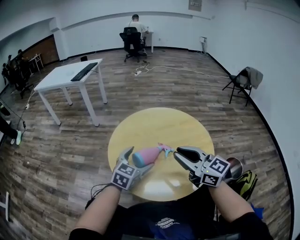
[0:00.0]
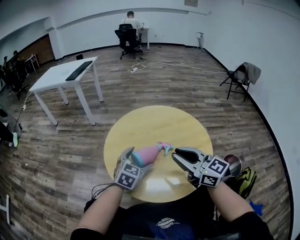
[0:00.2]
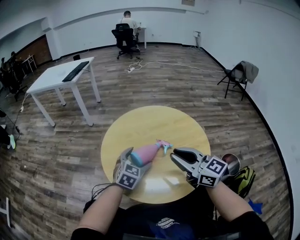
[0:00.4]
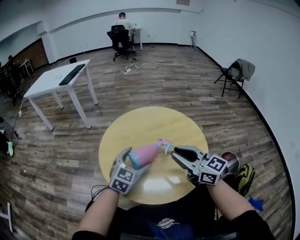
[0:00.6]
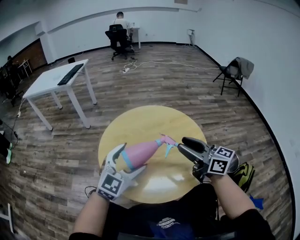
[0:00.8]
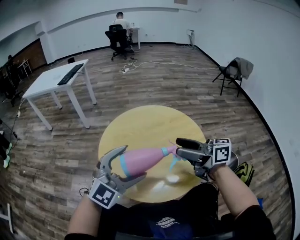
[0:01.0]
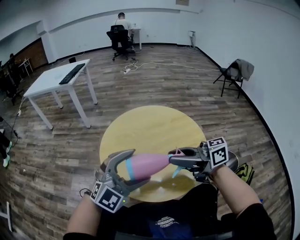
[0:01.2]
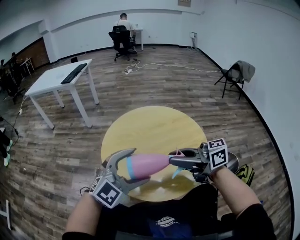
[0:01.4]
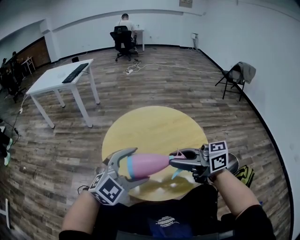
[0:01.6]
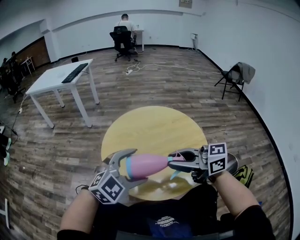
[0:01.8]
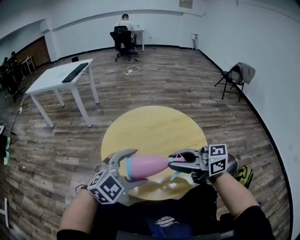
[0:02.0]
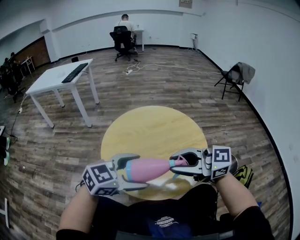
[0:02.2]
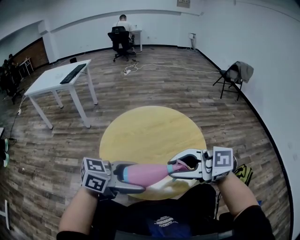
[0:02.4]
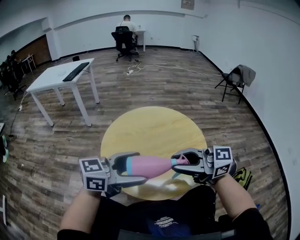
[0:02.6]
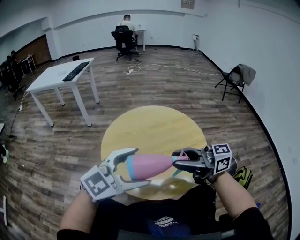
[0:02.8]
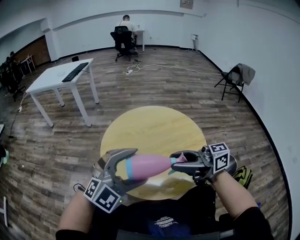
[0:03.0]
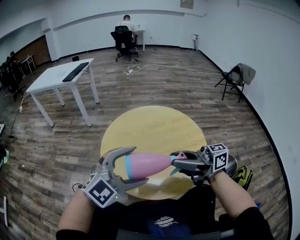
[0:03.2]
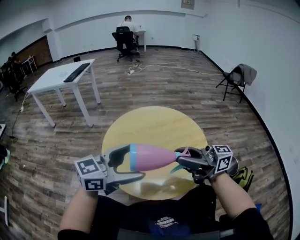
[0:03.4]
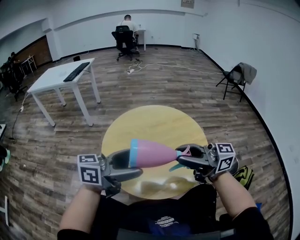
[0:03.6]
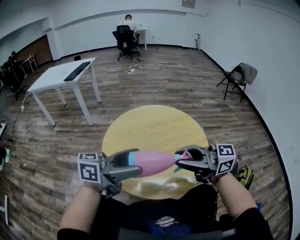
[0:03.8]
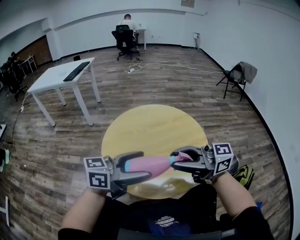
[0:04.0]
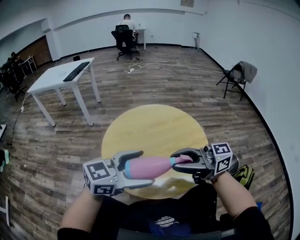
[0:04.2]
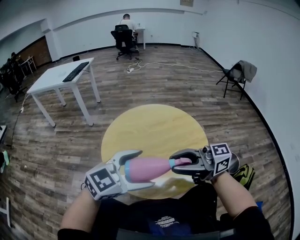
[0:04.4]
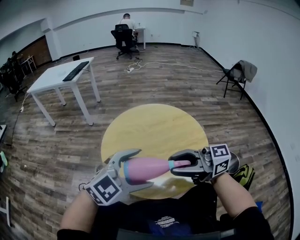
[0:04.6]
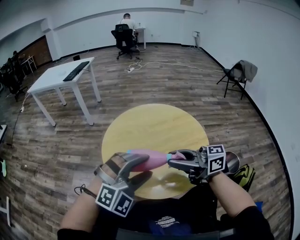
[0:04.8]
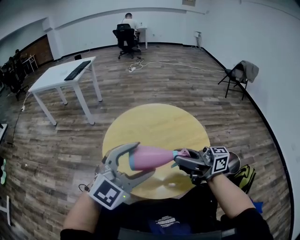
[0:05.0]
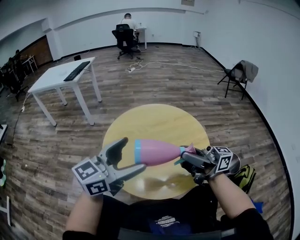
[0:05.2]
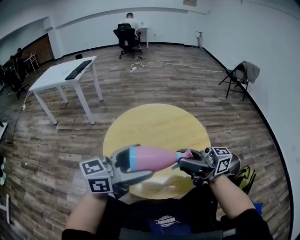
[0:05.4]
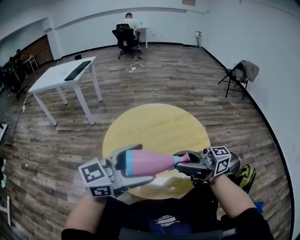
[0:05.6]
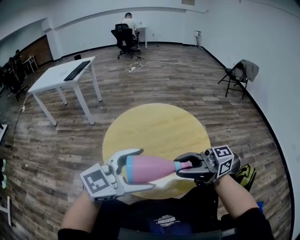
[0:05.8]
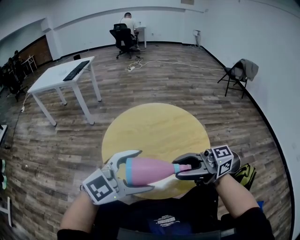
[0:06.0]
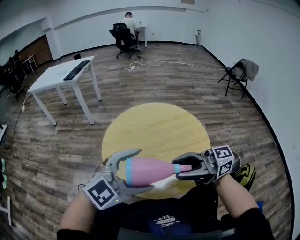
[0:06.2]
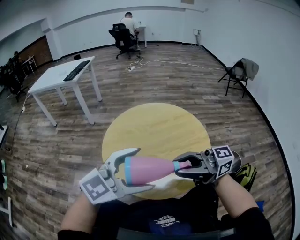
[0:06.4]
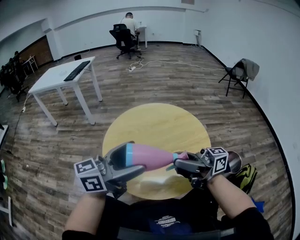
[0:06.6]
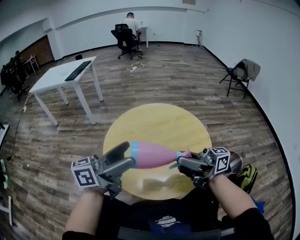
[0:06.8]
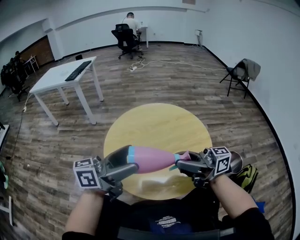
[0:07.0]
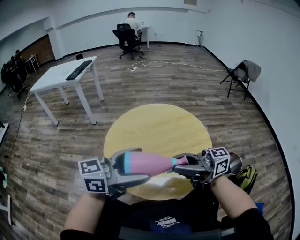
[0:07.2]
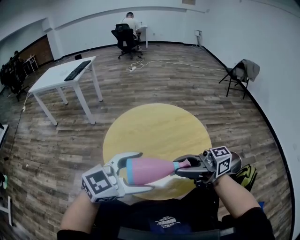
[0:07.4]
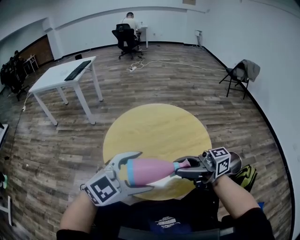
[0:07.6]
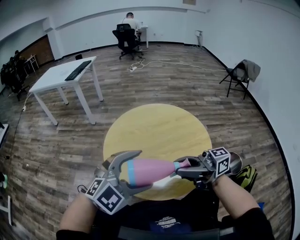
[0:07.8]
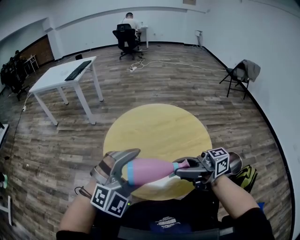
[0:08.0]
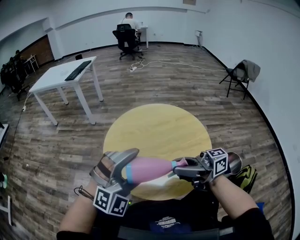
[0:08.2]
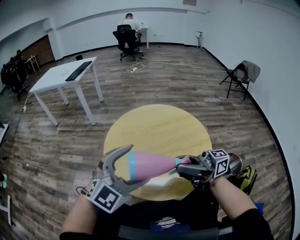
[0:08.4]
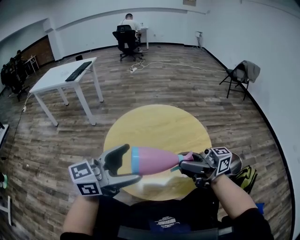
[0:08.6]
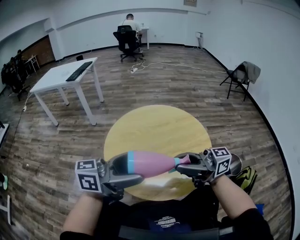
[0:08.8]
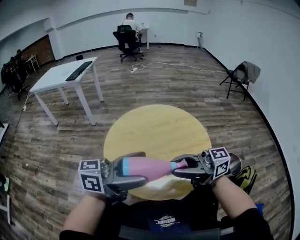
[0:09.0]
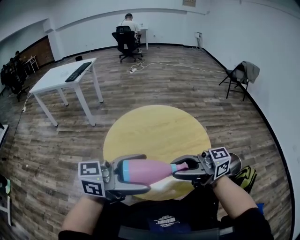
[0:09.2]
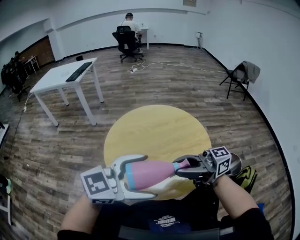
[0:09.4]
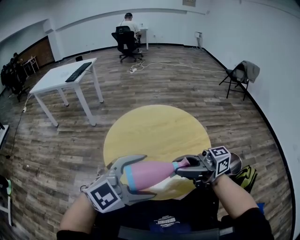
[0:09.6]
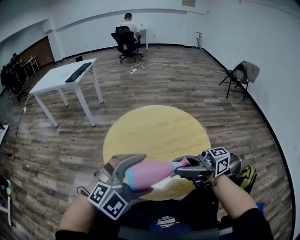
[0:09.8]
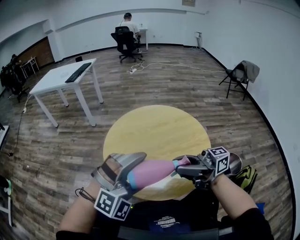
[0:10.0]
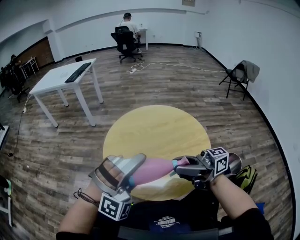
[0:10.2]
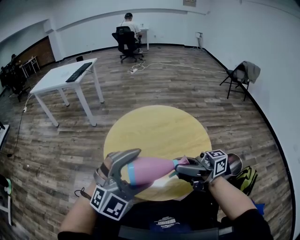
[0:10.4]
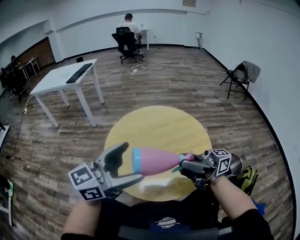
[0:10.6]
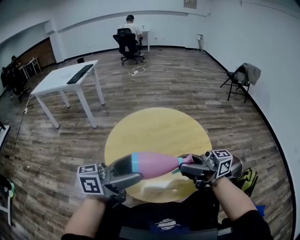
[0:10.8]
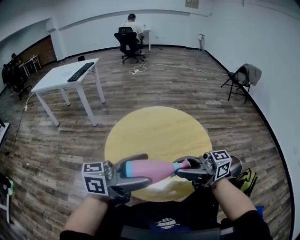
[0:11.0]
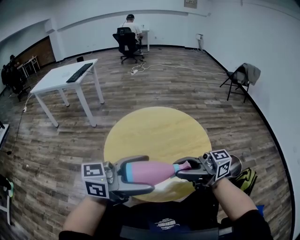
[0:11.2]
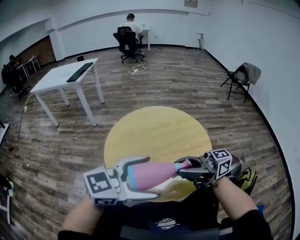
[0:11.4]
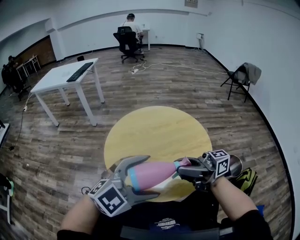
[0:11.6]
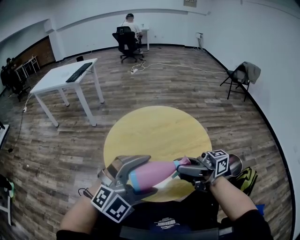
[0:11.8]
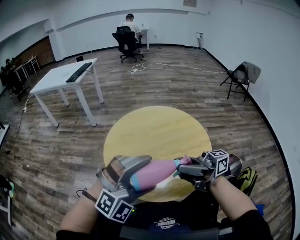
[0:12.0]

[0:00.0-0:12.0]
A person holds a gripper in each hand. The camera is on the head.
0:00.0 to 0:01.6: The left gripper is displaced upward and backward by approximately 15 cm, and turns by approximately 40 degrees. The right gripper reaches roughly 10 cm to the right, then returns, swivels approximately 30 degrees, and opens, then closes once more.
0:03.0 to 0:04.4: The left gripper turns by approximately 40 degrees.
0:04.4 to 0:06.0: The left gripper closes and opens again.
0:07.6 to 0:09.0: The left gripper is displaced upward by roughly 5 cm, and rotates around the line of its fingers by roughly 50 degrees, counterclockwise from behind.
0:09.0 to 0:10.4: The left gripper rotates around the line of its fingers by roughly 80 degrees, clockwise from behind.

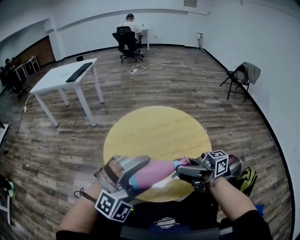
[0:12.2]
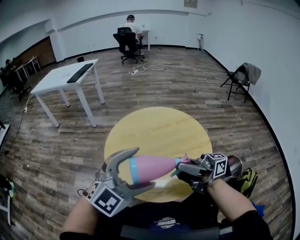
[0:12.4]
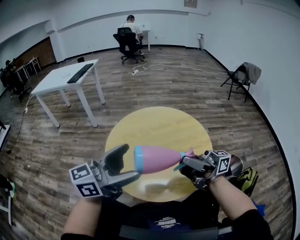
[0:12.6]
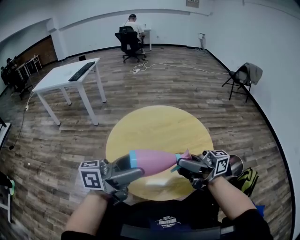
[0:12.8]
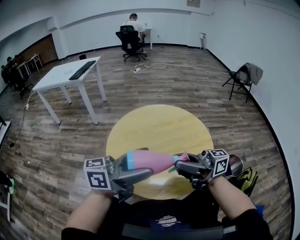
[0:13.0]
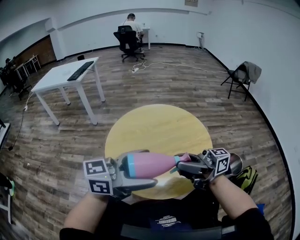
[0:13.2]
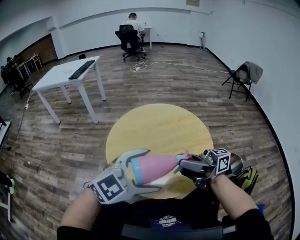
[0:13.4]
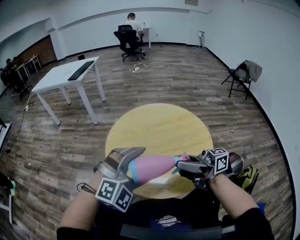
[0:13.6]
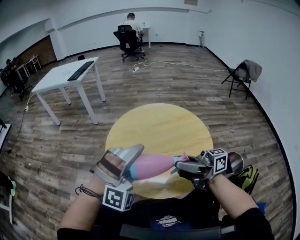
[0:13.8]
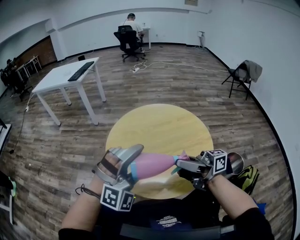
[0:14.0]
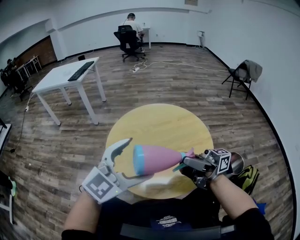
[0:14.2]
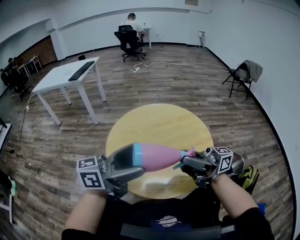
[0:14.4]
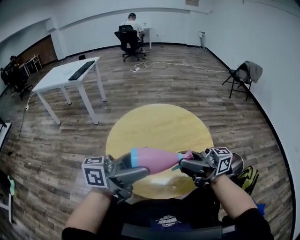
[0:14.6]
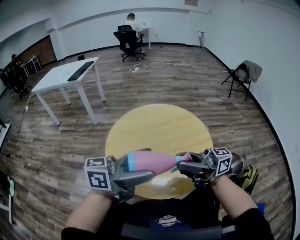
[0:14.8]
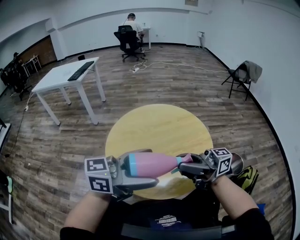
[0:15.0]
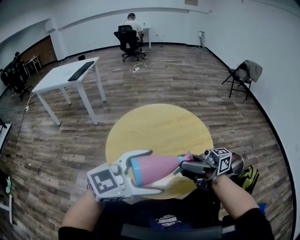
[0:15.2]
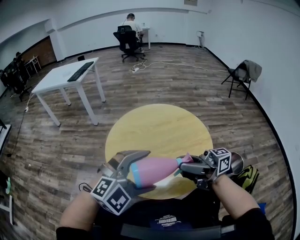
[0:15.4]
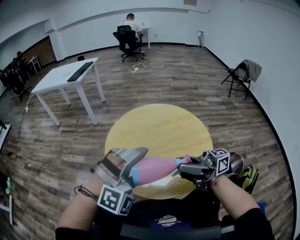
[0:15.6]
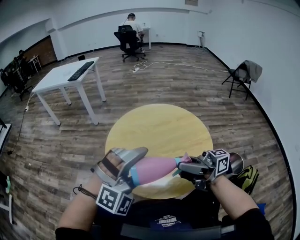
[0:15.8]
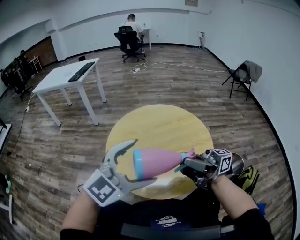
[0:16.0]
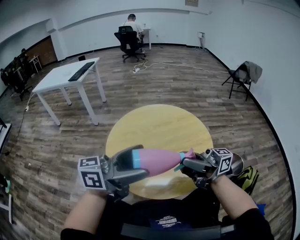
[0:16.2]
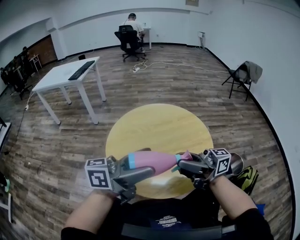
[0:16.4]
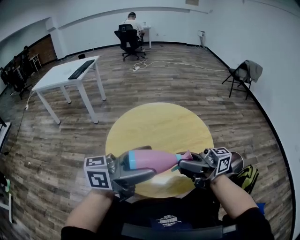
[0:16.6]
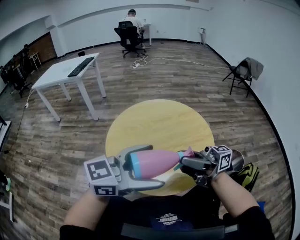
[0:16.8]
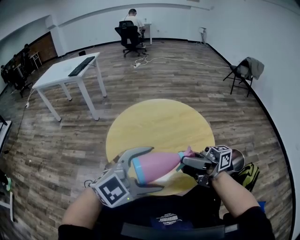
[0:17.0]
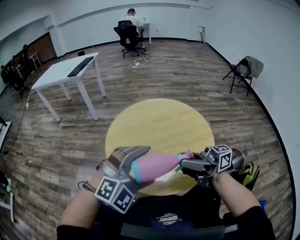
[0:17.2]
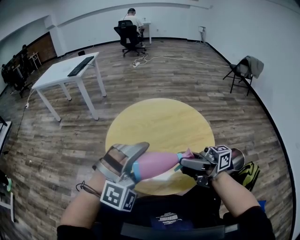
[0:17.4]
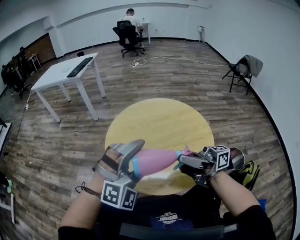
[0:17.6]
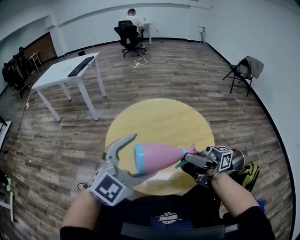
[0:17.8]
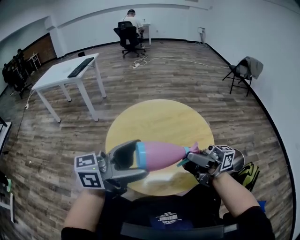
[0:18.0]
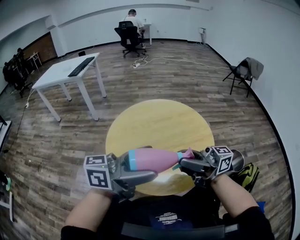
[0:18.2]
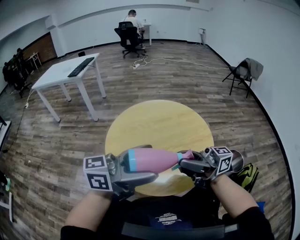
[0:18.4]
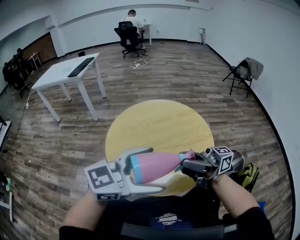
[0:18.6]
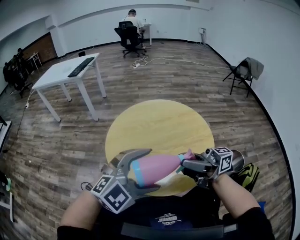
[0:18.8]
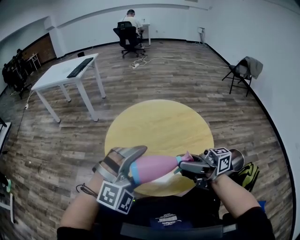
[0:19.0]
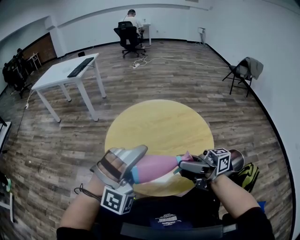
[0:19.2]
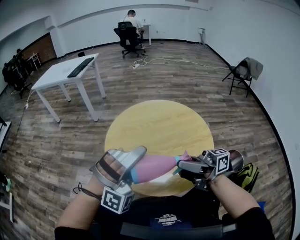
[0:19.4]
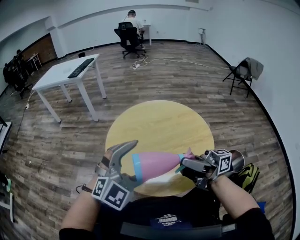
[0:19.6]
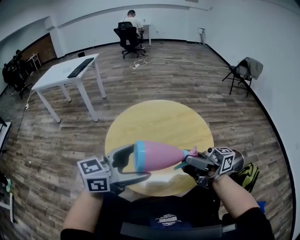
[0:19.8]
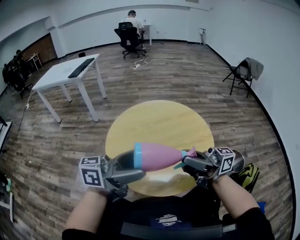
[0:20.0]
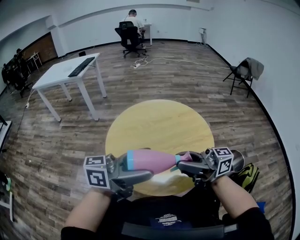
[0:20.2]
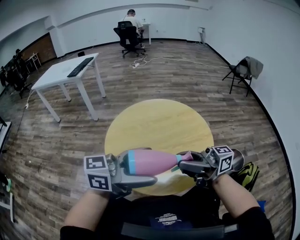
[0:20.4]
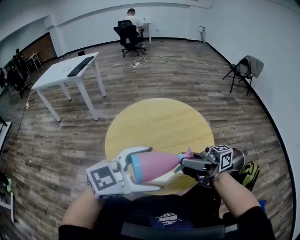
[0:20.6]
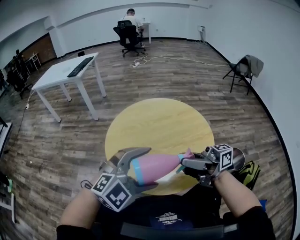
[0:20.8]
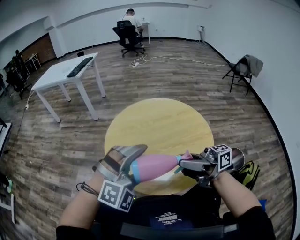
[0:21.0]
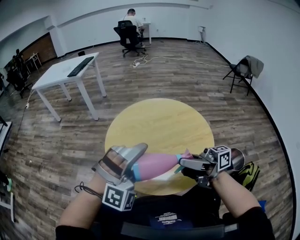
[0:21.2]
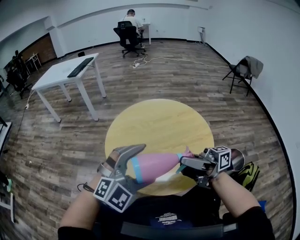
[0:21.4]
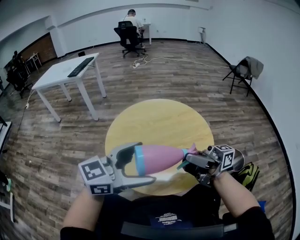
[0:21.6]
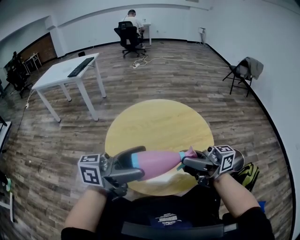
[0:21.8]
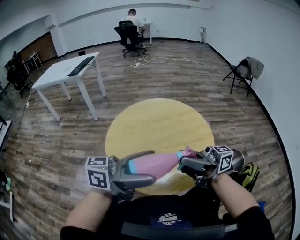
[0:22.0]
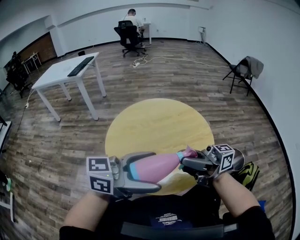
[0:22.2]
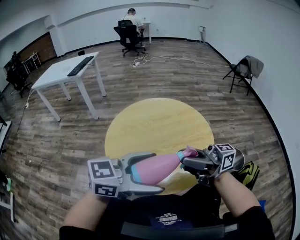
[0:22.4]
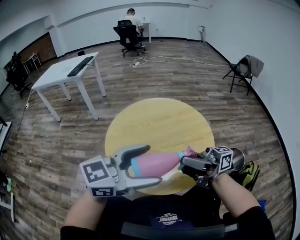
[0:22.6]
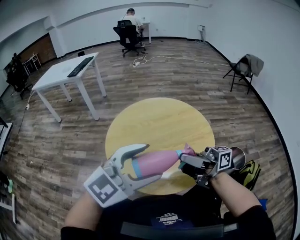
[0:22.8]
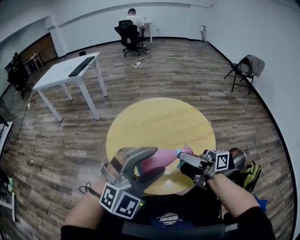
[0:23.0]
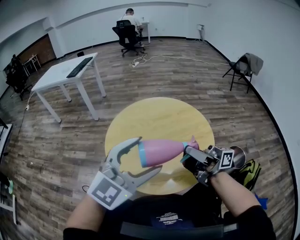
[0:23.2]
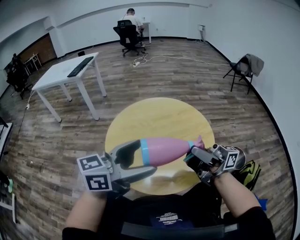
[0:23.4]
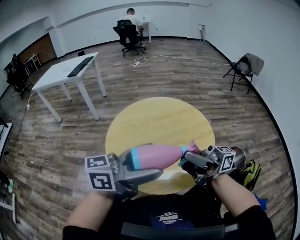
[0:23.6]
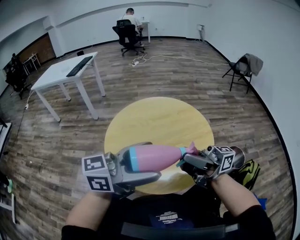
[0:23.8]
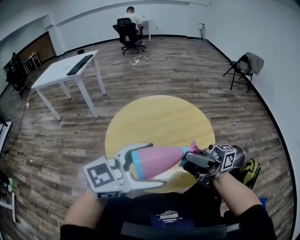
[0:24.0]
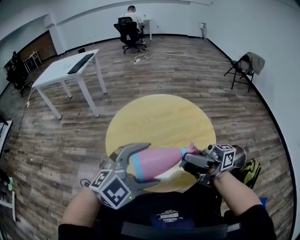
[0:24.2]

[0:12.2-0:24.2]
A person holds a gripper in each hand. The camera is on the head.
0:12.2 to 0:13.8: The left gripper reaches roughly 5 cm upward, then returns, and changes its angle by approximately 20 degrees.
0:13.8 to 0:15.2: The left gripper shifts by some 10 cm, and rotates around the line of its fingers by about 70 degrees, counterclockwise from behind.
0:15.2 to 0:16.6: The left gripper ends up some 5 cm from where it was, and turns by roughly 50 degrees.
0:16.6 to 0:18.2: The left gripper goes downward and returns, roughly 10 cm each way.
0:18.2 to 0:19.8: The left gripper swivels approximately 20 degrees.
0:19.8 to 0:21.2: The left gripper twists some 100 degrees clockwise, seen from behind.
0:21.2 to 0:22.6: The left gripper goes some 5 cm upward, and rotates around the line of its fingers by about 80 degrees, counterclockwise from behind.
0:22.6 to 0:24.2: The left gripper moves downward, about 5 cm, and changes its angle by approximately 50 degrees.
